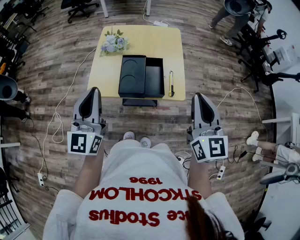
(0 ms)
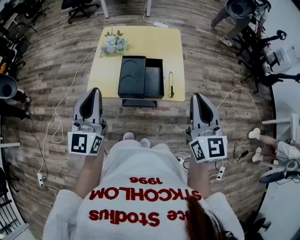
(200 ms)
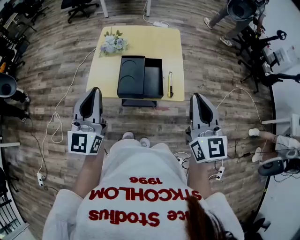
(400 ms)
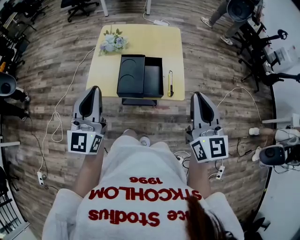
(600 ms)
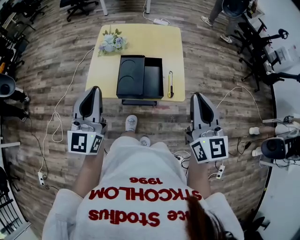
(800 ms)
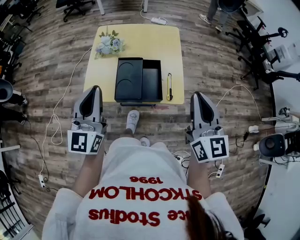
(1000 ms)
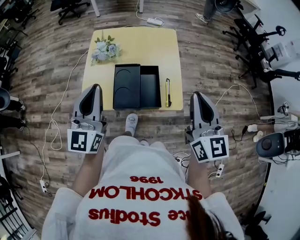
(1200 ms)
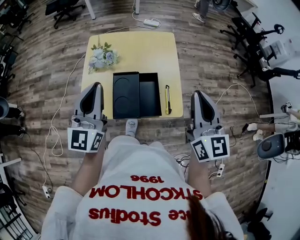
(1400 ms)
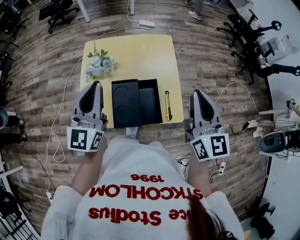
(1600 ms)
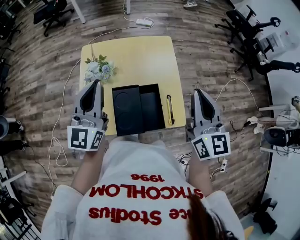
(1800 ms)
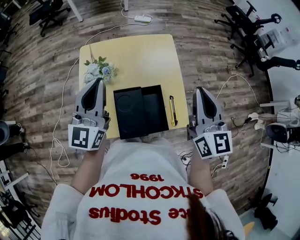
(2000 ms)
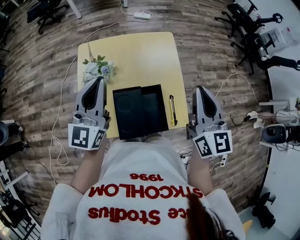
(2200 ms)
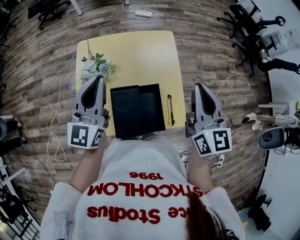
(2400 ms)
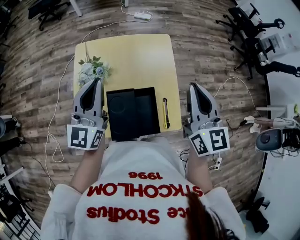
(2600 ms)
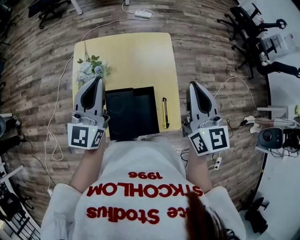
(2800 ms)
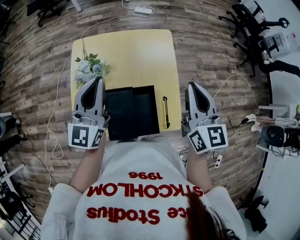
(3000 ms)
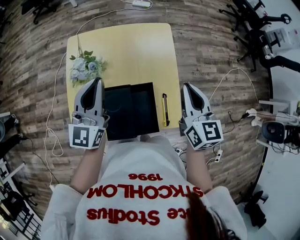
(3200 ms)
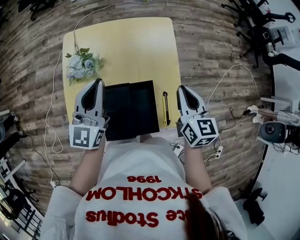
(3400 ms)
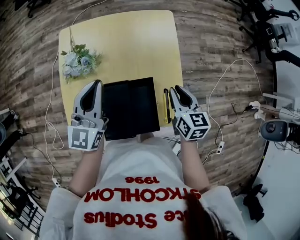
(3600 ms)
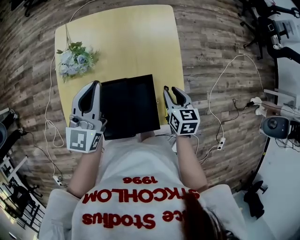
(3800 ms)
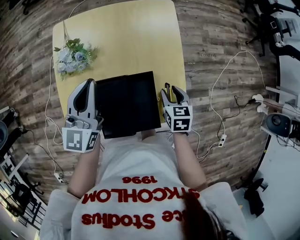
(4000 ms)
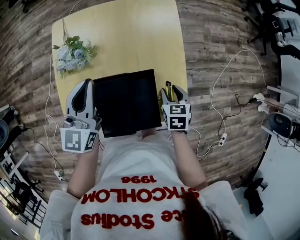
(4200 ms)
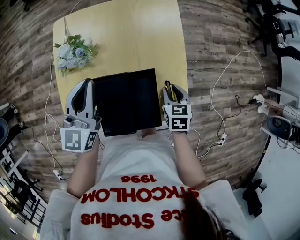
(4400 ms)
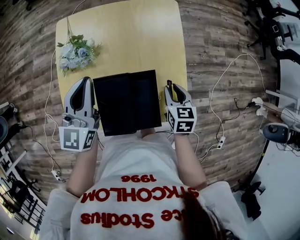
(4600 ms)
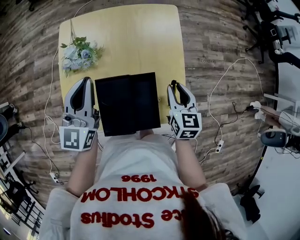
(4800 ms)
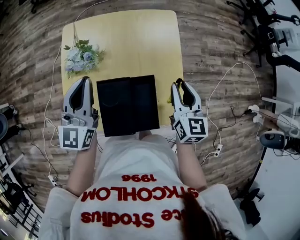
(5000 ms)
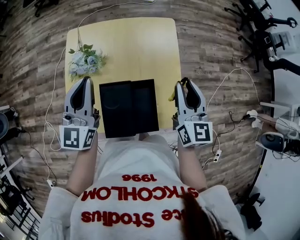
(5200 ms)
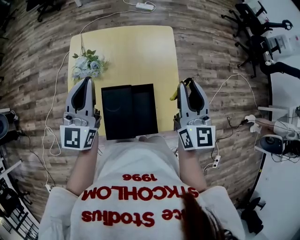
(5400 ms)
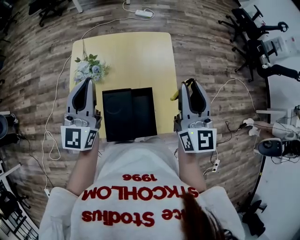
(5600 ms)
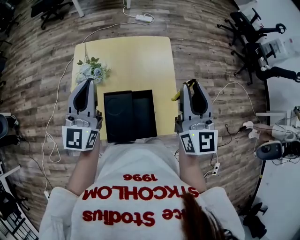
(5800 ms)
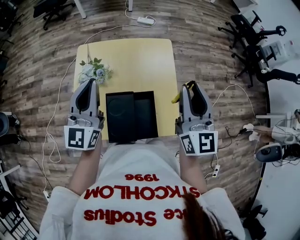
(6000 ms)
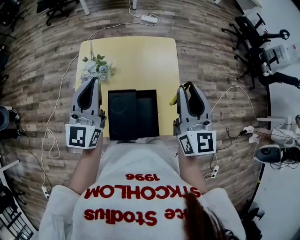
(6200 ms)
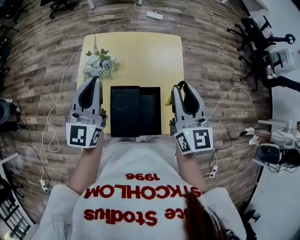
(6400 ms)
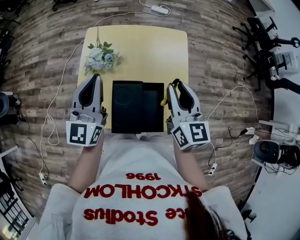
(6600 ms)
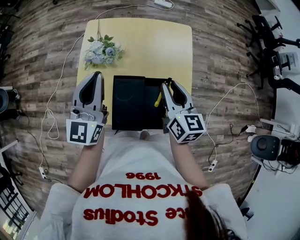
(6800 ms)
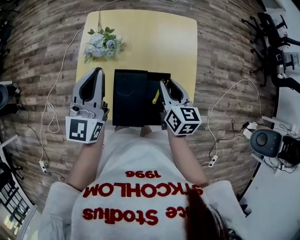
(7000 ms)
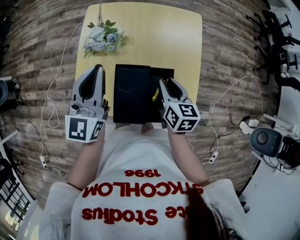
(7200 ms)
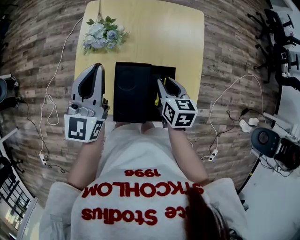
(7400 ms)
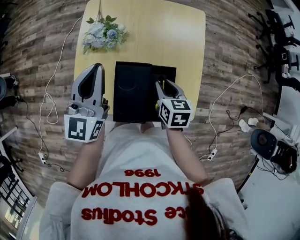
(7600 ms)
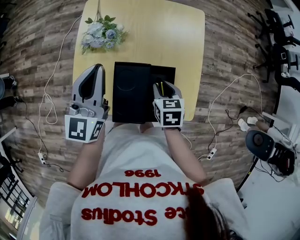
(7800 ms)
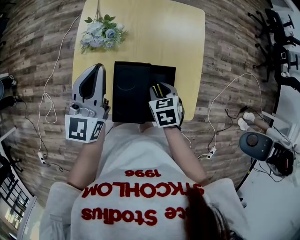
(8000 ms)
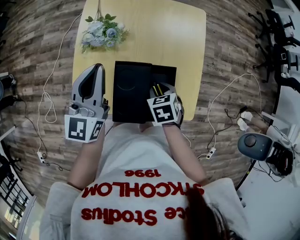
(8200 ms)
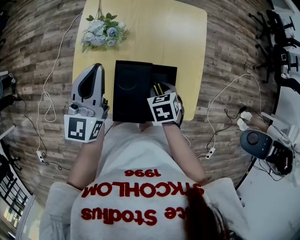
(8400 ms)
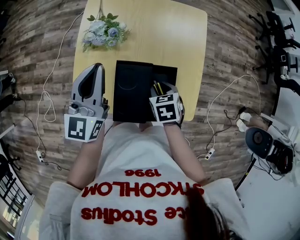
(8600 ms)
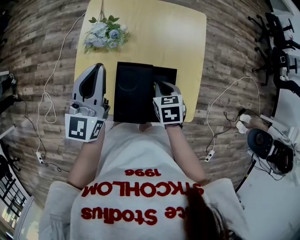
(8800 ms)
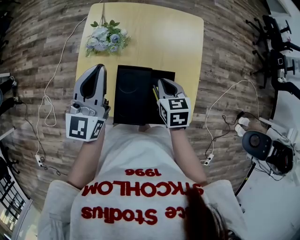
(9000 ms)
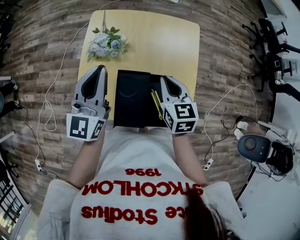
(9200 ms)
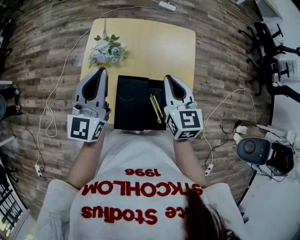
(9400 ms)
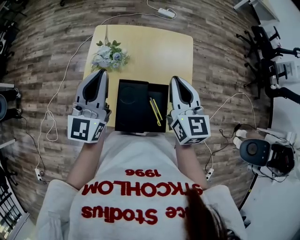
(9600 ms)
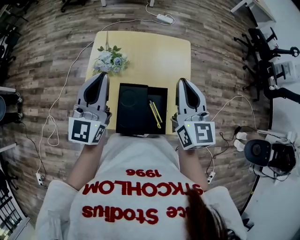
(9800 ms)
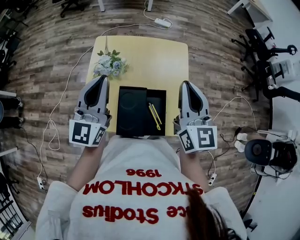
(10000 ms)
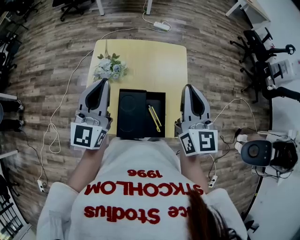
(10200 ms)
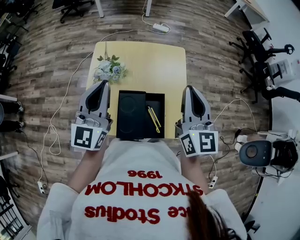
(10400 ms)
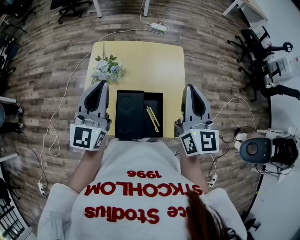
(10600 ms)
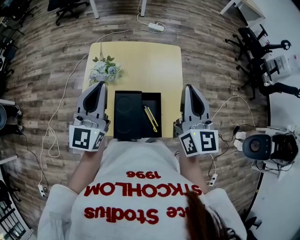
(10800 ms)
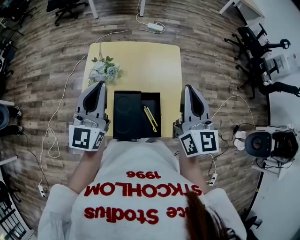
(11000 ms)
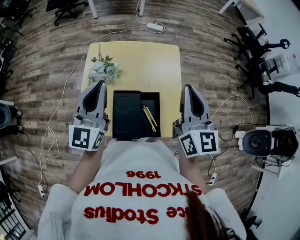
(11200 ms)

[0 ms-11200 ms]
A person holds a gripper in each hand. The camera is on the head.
0 ms to 1600 ms: Both grippers travel together forward, about 15 cm.
1600 ms to 3200 ms: The right gripper is displaced downward and forward by approximately 15 cm. The left gripper travels forward and downward by about 10 cm.
3200 ms to 4800 ms: The left gripper moves roughly 5 cm. The right gripper is displaced downward by some 15 cm, and opens its fingers.
4800 ms to 6400 ms: The right gripper goes roughly 20 cm upward, and changes its angle by some 30 degrees, while the left gripper heads upward, covering about 10 cm.
6400 ms to 8000 ms: The left gripper shifts approximately 5 cm downward. Meanwhile the right gripper heads downward, covering some 25 cm, and tips its fingers downward by some 60 degrees.
8000 ms to 9600 ms: The left gripper moves upward, roughly 5 cm; the right gripper travels upward by roughly 25 cm, tilts its fingers roughly 50 degrees upward, and closes.
9600 ms to 11200 ms: The right gripper is displaced upward and to the right by some 10 cm.

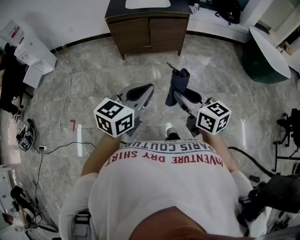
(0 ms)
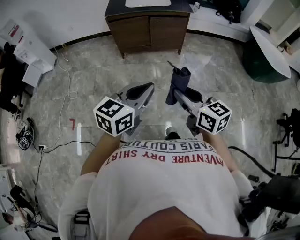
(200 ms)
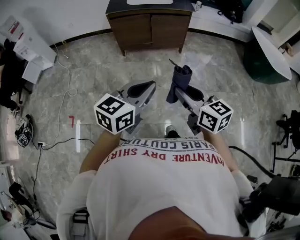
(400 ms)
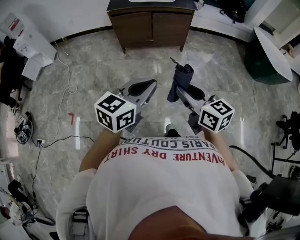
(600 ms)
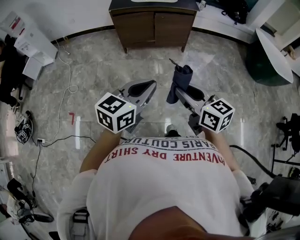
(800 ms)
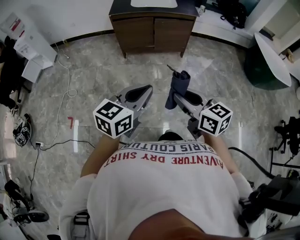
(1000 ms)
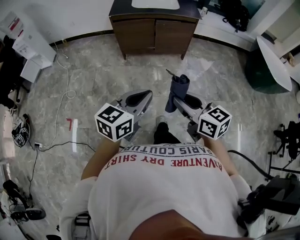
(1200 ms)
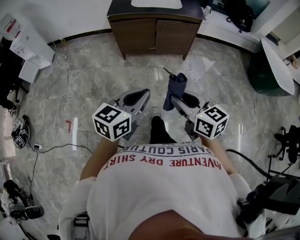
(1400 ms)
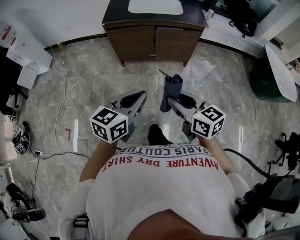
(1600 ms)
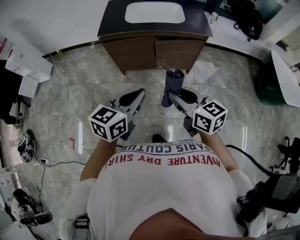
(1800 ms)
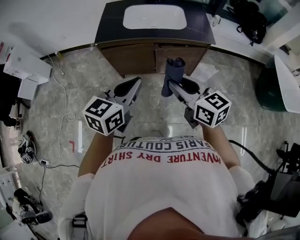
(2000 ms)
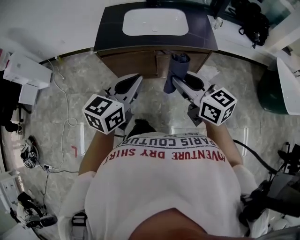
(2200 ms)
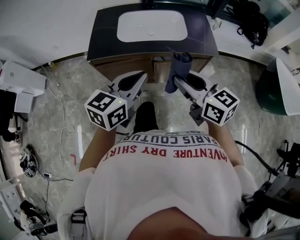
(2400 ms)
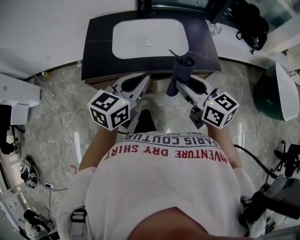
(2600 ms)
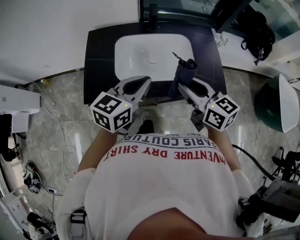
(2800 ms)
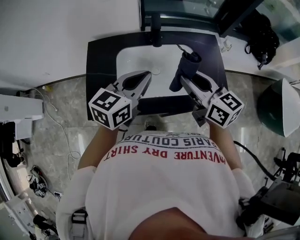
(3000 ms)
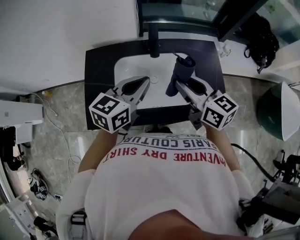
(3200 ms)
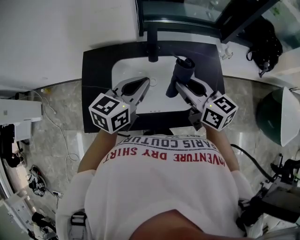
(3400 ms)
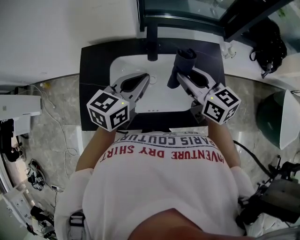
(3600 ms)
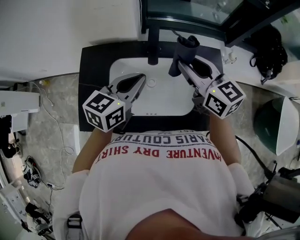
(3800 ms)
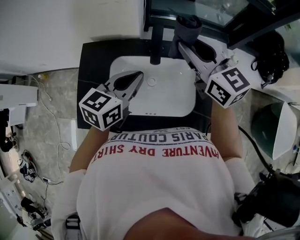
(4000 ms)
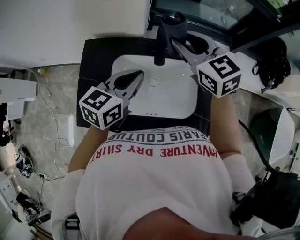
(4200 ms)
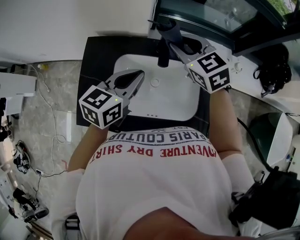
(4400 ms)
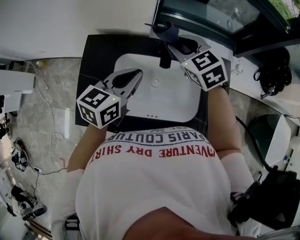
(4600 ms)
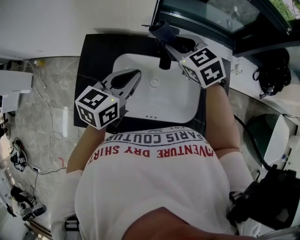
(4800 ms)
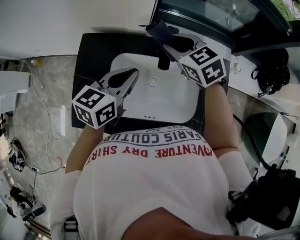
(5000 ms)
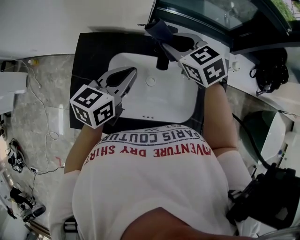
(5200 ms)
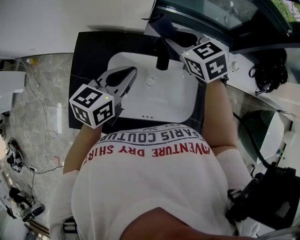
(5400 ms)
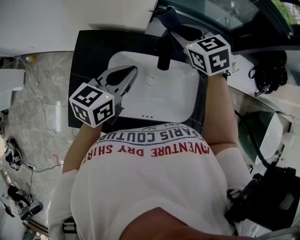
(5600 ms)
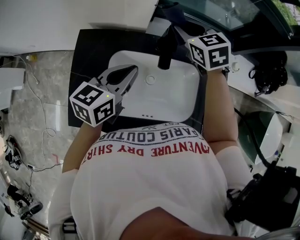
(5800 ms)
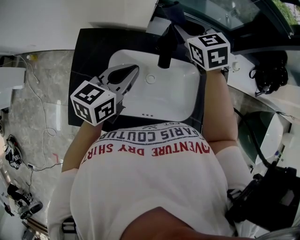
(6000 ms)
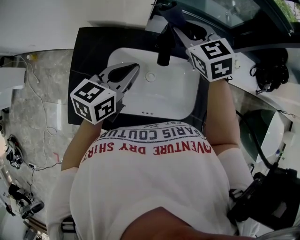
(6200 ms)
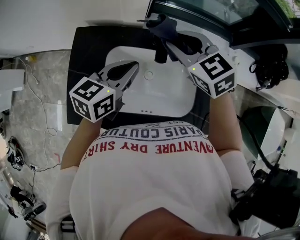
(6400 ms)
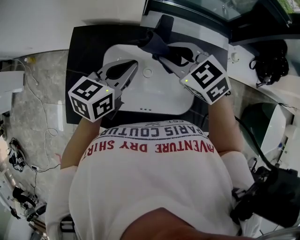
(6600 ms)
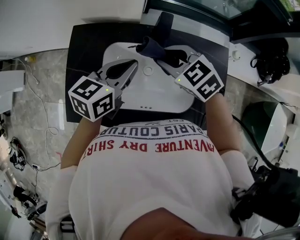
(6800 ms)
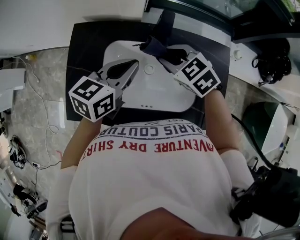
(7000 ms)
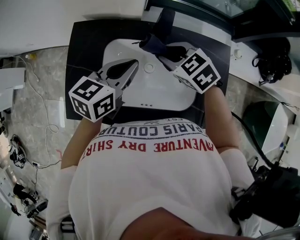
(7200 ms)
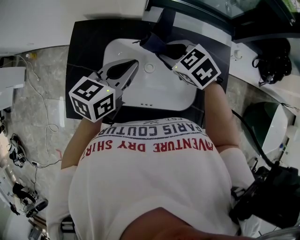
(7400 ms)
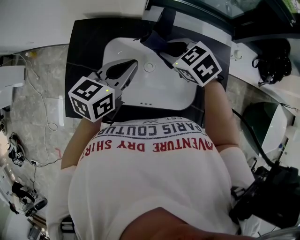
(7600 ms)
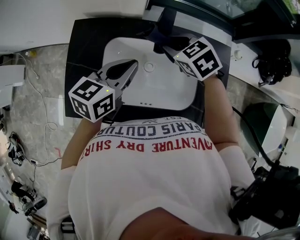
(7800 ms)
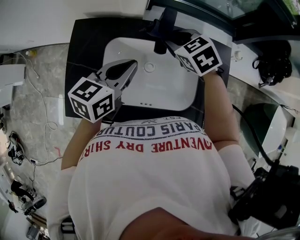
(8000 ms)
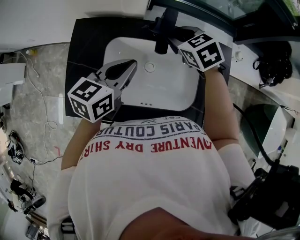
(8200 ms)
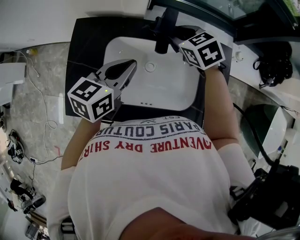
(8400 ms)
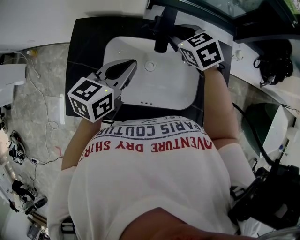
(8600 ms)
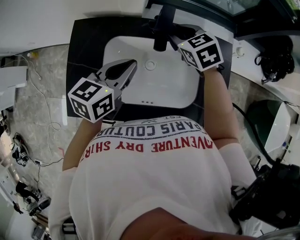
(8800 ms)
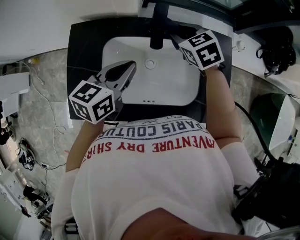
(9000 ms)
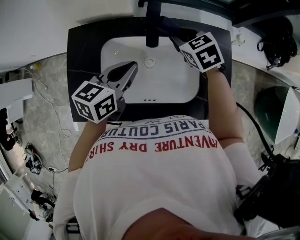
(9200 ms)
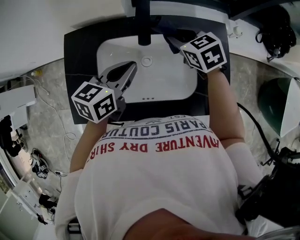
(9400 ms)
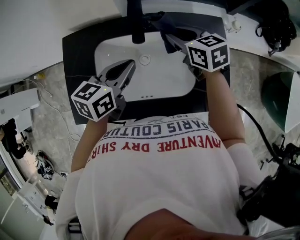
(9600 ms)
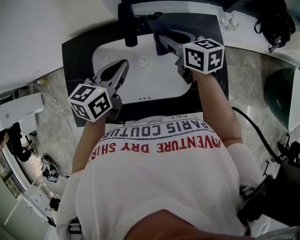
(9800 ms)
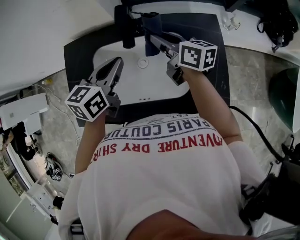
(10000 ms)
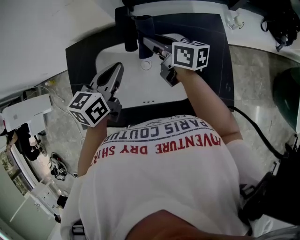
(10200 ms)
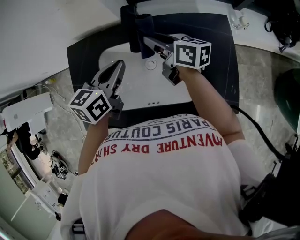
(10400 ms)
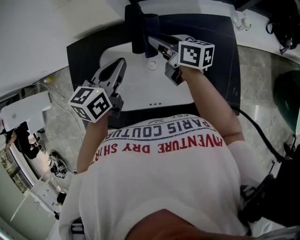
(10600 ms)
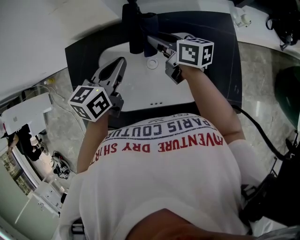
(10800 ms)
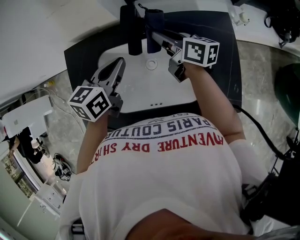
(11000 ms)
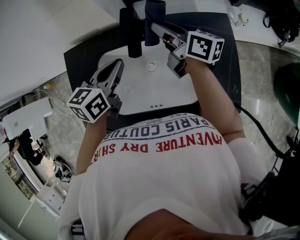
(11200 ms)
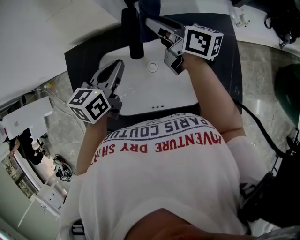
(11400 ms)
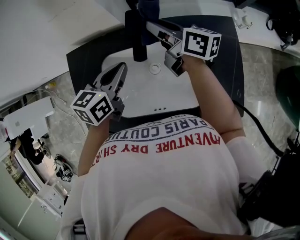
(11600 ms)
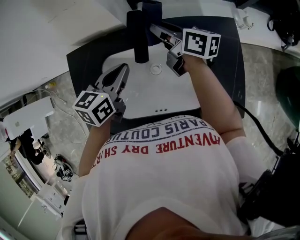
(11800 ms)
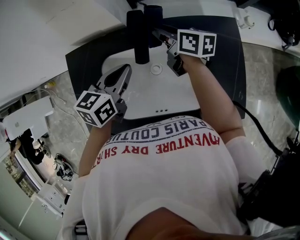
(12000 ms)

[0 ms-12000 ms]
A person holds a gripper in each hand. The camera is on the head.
0 ms to 1600 ms: The grippers both shift forward by about 30 cm.
1600 ms to 3000 ms: The pair of grippers is taken forward, about 80 cm.
3000 ms to 4400 ms: The left gripper is displaced forward by roughly 15 cm. Meanwhile the right gripper moves forward, approximately 25 cm, and swivels some 40 degrees.
4400 ms to 6000 ms: The left gripper ends up approximately 5 cm from where it was; the right gripper heads forward, covering approximately 10 cm.
6000 ms to 7600 ms: The right gripper goes some 15 cm backward and downward, and swivels about 30 degrees.
7600 ms to 9000 ms: The right gripper travels forward and to the right by about 10 cm.
9000 ms to 10400 ms: The right gripper tilts its fingers about 40 degrees upward.
10400 ms to 12000 ms: The right gripper goes about 10 cm forward and downward. The left gripper moves approximately 5 cm.

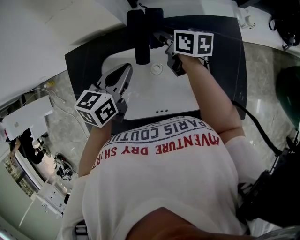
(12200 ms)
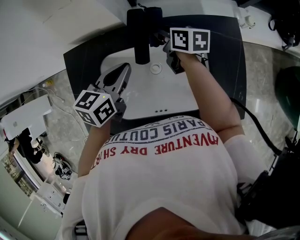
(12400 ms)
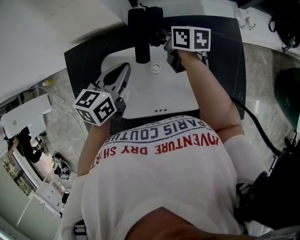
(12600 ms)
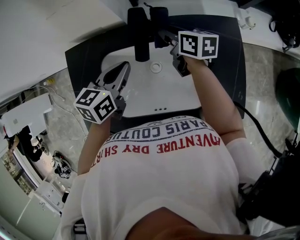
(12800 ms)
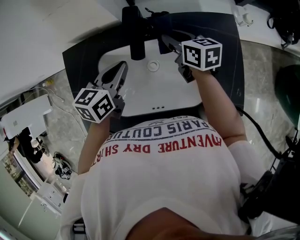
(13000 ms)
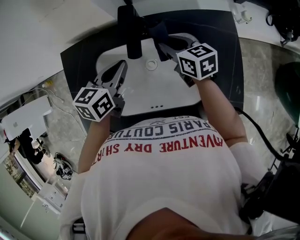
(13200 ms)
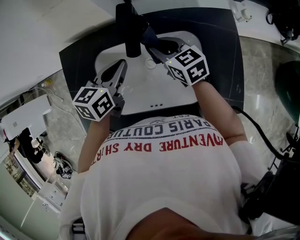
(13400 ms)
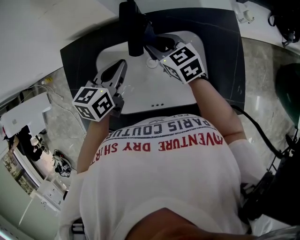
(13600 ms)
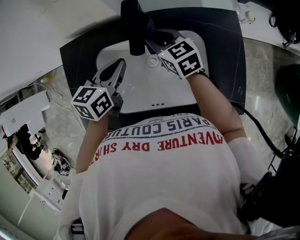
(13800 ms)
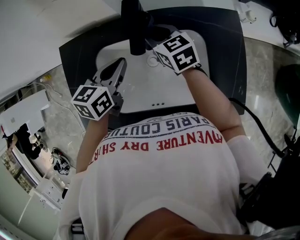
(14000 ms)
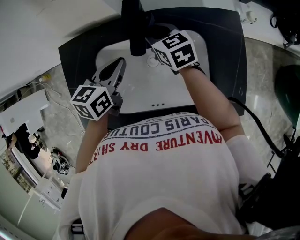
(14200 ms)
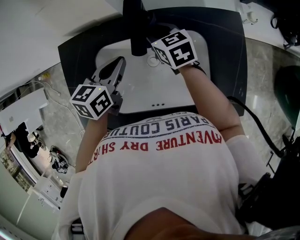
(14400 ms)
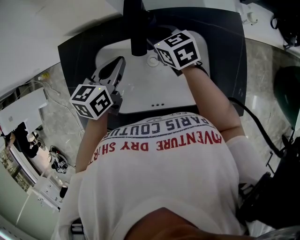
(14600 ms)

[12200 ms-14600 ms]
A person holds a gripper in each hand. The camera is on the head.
12200 ms to 13400 ms: The right gripper travels backward by approximately 10 cm, and changes its angle by roughly 30 degrees.
13400 ms to 14600 ms: The right gripper goes approximately 5 cm forward.
